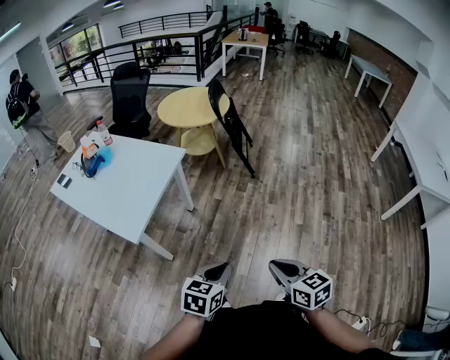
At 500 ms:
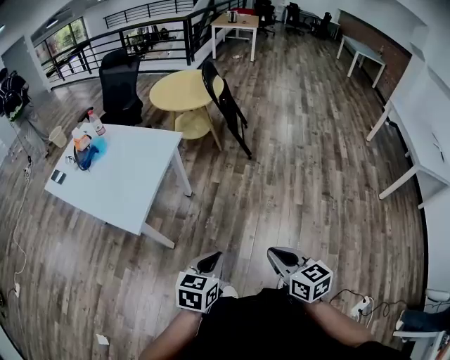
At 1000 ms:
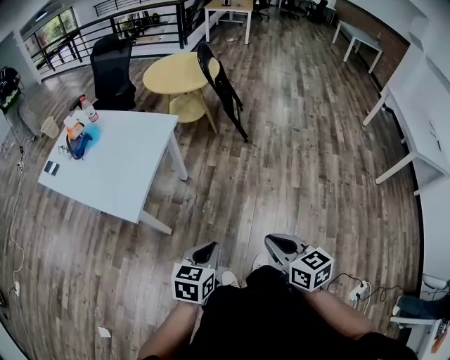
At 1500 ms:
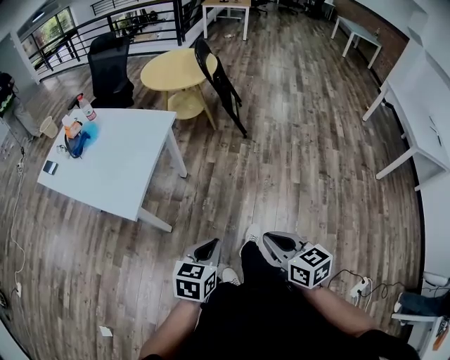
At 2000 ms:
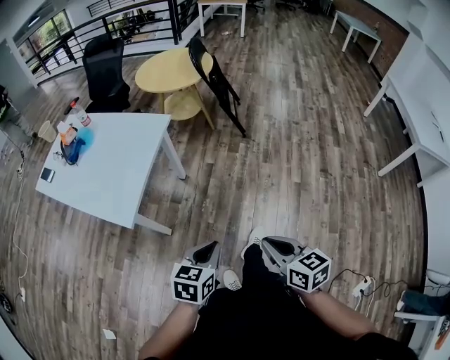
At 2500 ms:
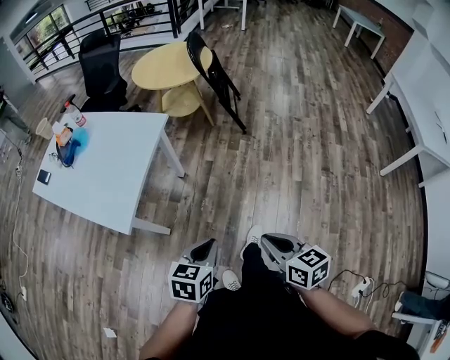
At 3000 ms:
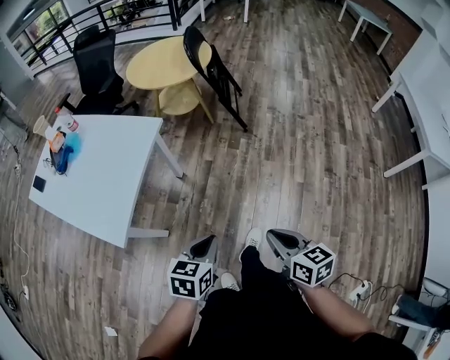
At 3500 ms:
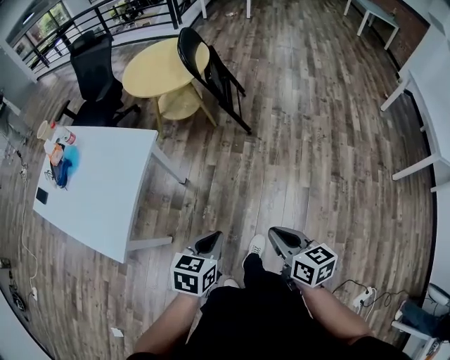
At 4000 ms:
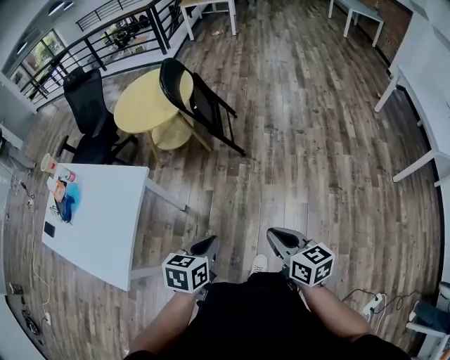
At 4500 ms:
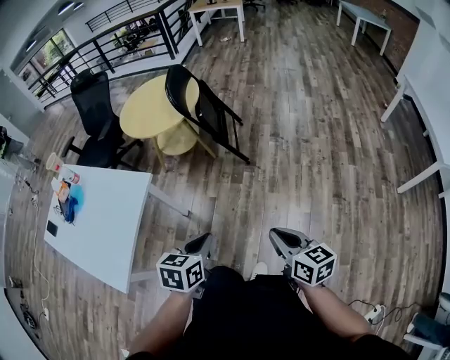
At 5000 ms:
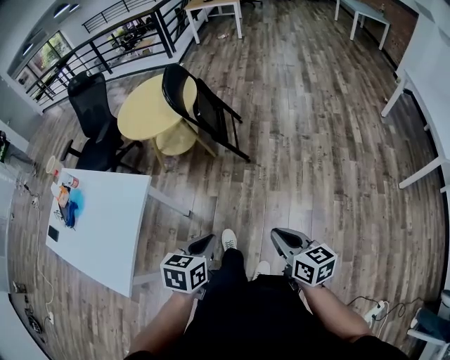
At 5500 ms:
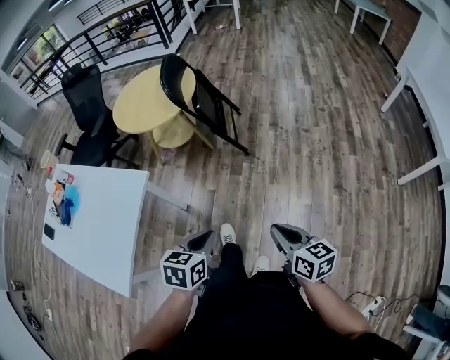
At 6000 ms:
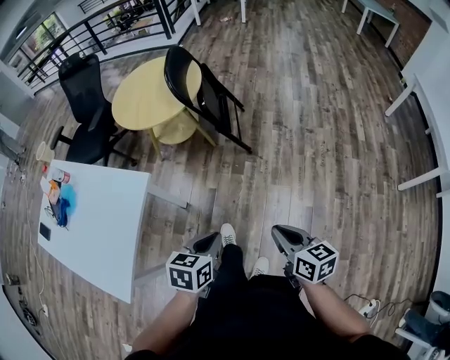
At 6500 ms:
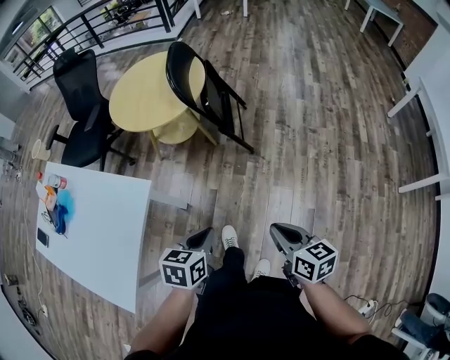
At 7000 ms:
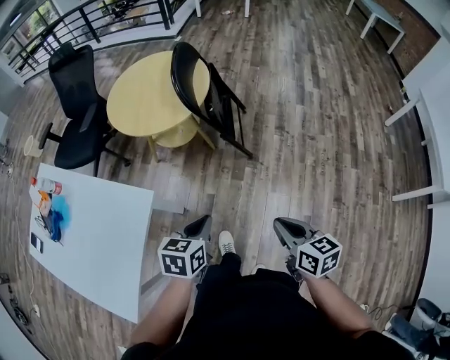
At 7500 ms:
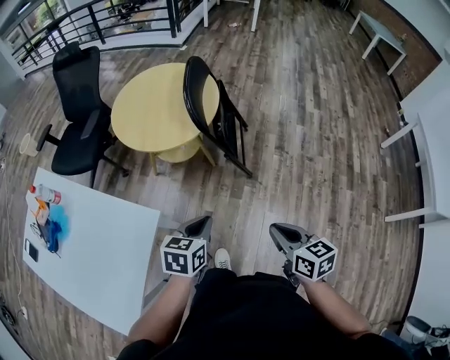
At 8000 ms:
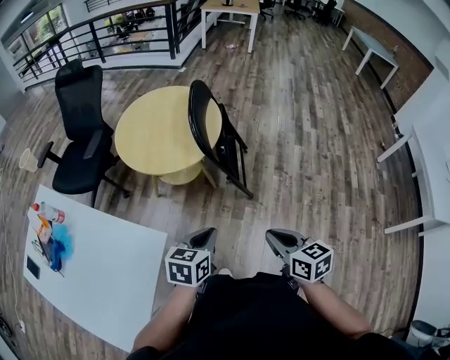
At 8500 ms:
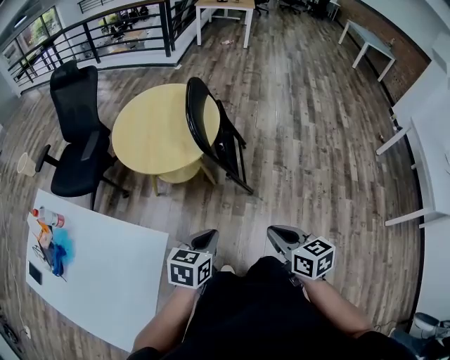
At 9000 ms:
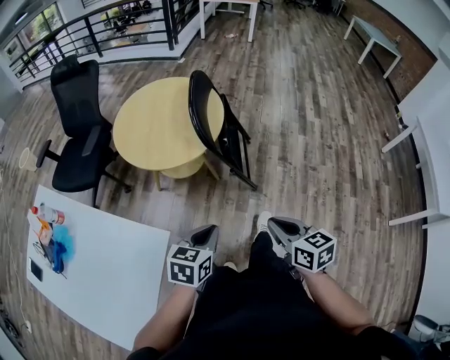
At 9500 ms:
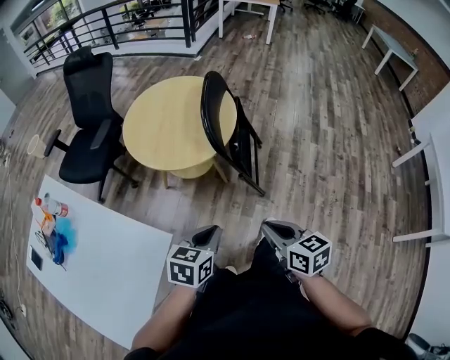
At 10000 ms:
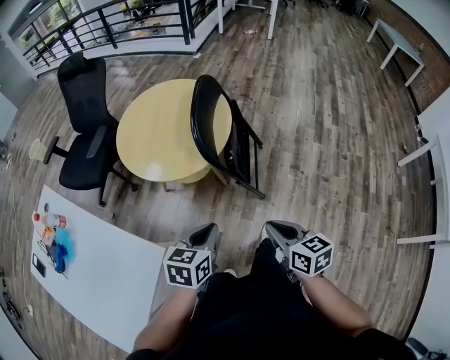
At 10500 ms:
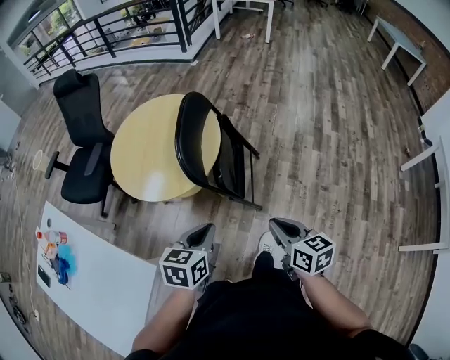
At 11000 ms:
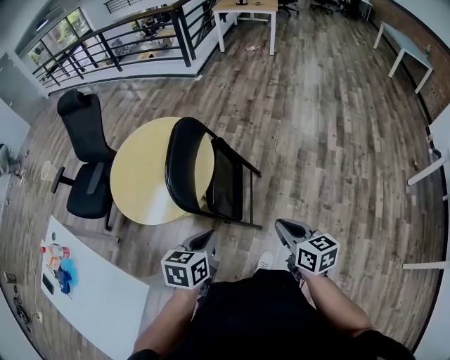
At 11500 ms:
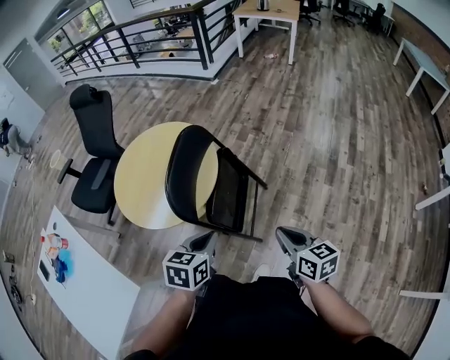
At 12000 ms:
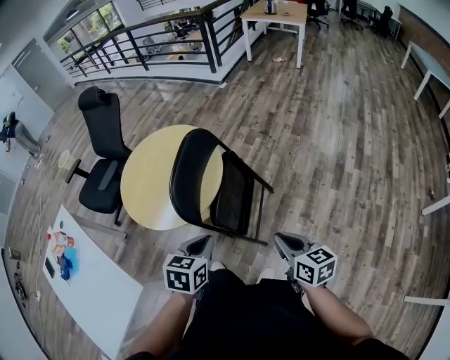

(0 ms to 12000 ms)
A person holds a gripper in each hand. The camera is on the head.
0 ms - 2000 ms: The left gripper heads to the left, covering roughly 5 cm. The right gripper changes place by about 5 cm.
2000 ms - 4000 ms: The two grippers go about 30 cm forward and to the right.
4000 ms - 6000 ms: Both grippers move forward, roughly 10 cm.
6000 ms - 8000 ms: The two grippers go about 25 cm forward and to the left.
8000 ms - 10000 ms: Both grippers move forward, roughly 10 cm.
10000 ms - 12000 ms: The left gripper travels forward and to the right by about 20 cm; the right gripper goes approximately 25 cm to the right and forward.

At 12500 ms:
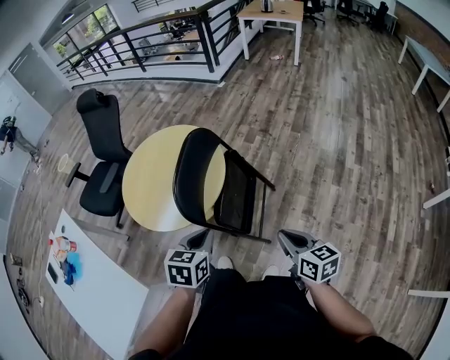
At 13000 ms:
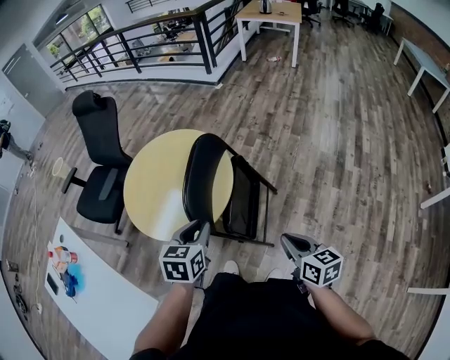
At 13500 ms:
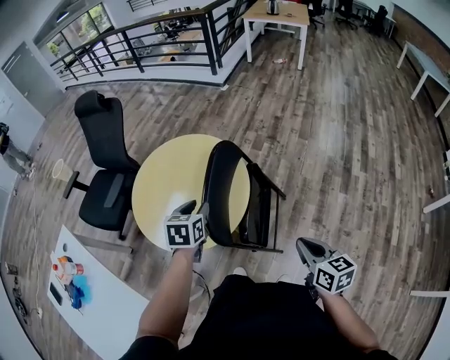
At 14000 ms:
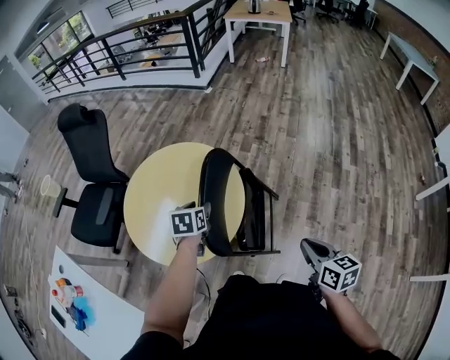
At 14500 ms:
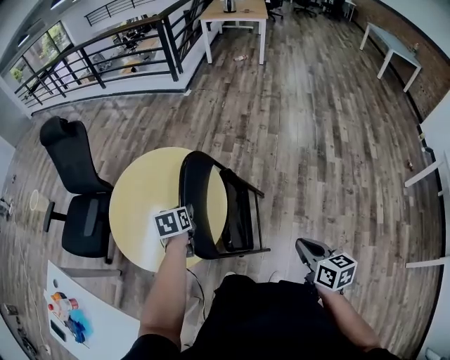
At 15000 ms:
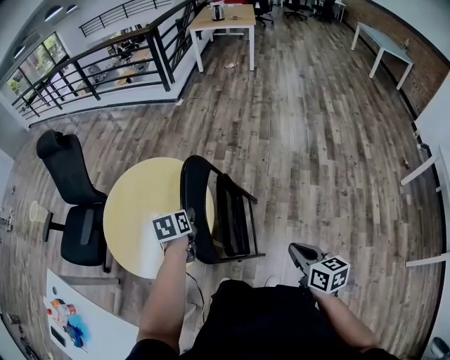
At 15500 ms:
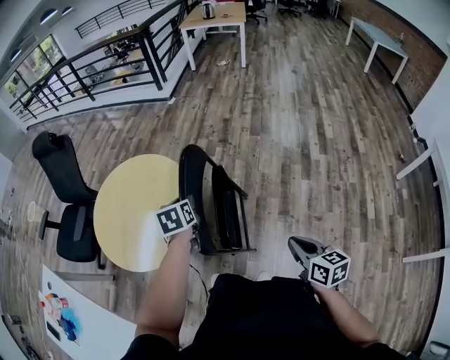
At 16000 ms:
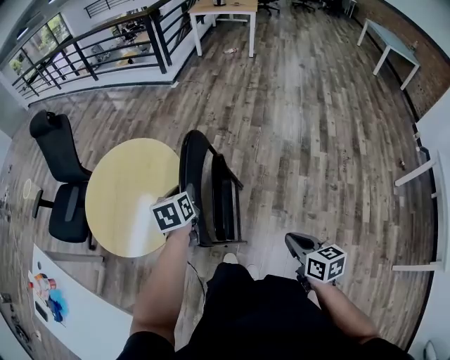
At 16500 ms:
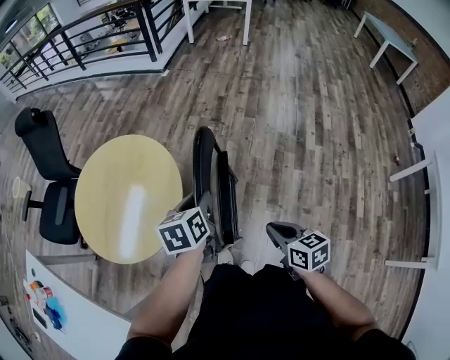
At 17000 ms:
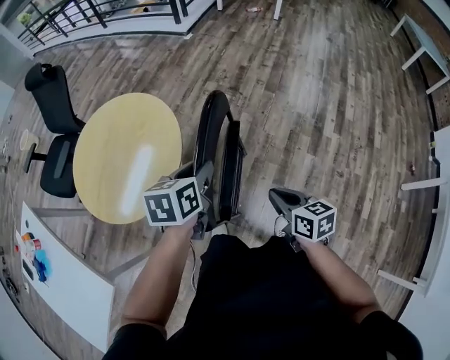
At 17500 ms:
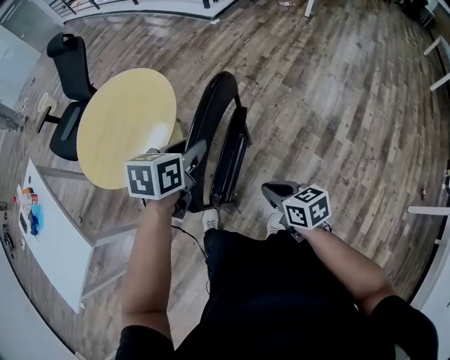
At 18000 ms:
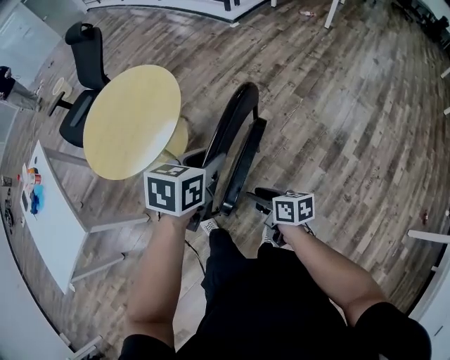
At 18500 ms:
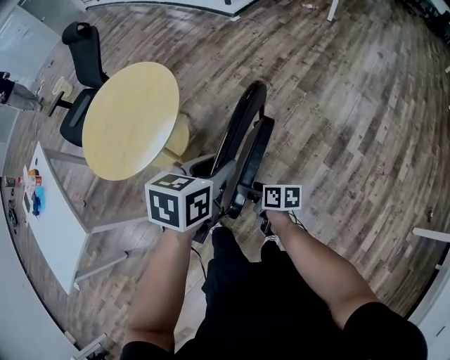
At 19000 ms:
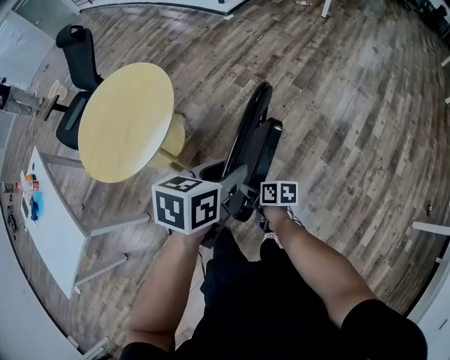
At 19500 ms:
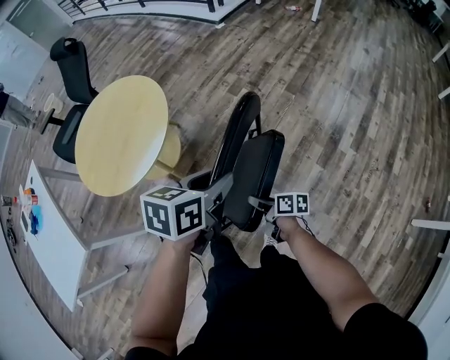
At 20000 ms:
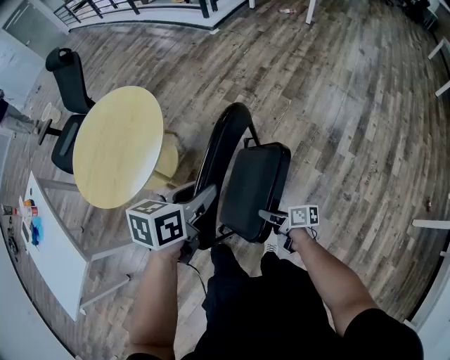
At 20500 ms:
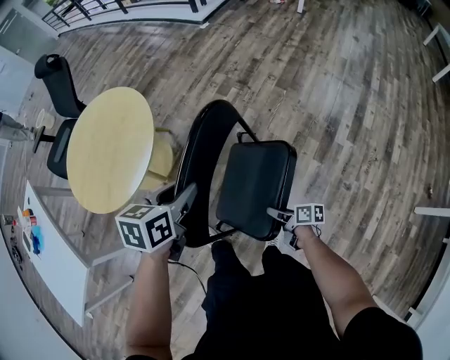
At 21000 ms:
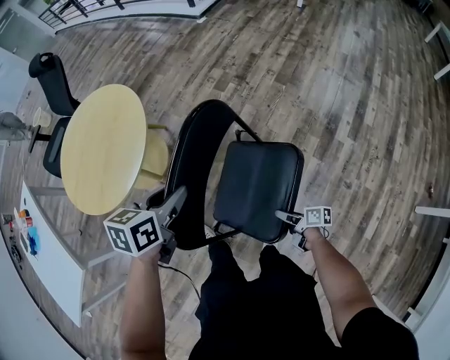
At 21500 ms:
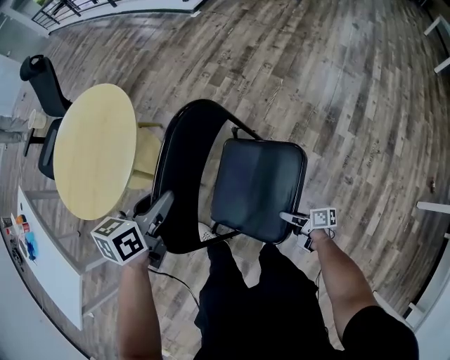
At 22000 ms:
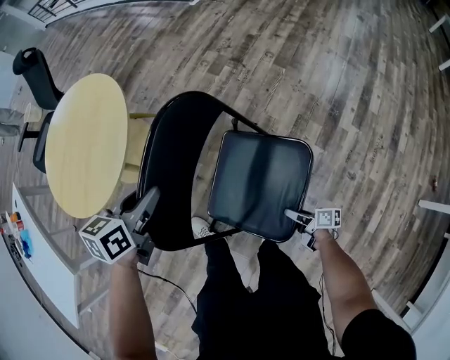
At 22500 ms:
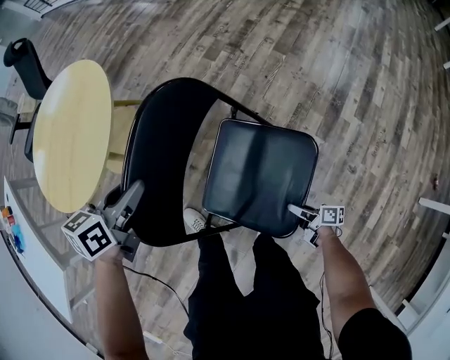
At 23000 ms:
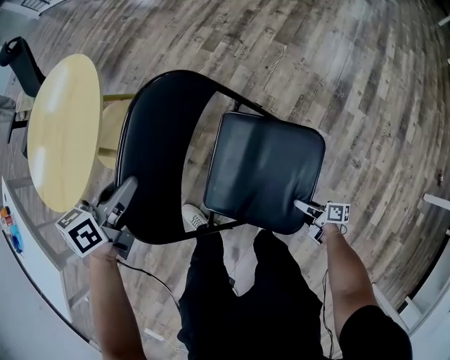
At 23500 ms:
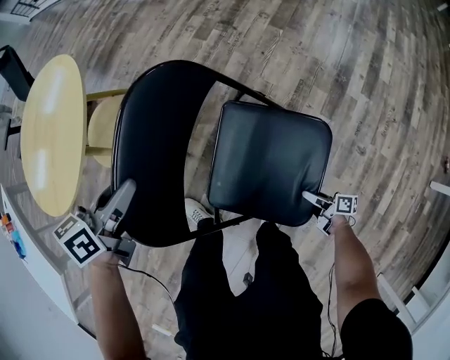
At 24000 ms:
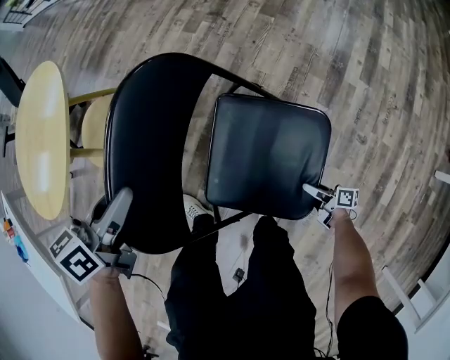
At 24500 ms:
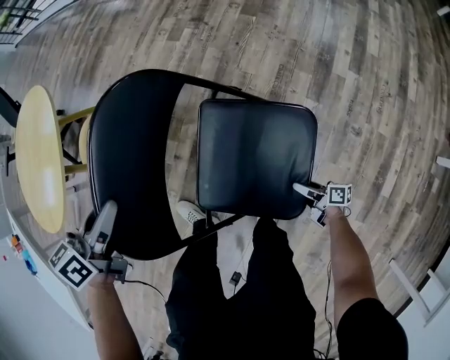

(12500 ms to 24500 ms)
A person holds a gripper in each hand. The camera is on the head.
12500 ms - 14500 ms: The left gripper shifts roughly 30 cm forward and to the left, and opens up. The right gripper travels forward by some 5 cm.
14500 ms - 16500 ms: The right gripper shifts about 10 cm to the right, while the left gripper shifts about 25 cm to the right.
16500 ms - 18500 ms: The right gripper is displaced downward by about 20 cm, changes its angle by roughly 30 degrees, and opens. Meanwhile the left gripper moves to the right and backward, roughly 20 cm.
18500 ms - 20500 ms: The right gripper moves to the right, downward and backward, approximately 15 cm, and closes its fingers; the left gripper ends up roughly 5 cm from where it was.
20500 ms - 22500 ms: The right gripper shifts some 20 cm downward and to the right. Meanwhile the left gripper heads downward and to the left, covering approximately 10 cm.
22500 ms - 24500 ms: The right gripper travels downward and to the right by roughly 10 cm; the left gripper shifts some 5 cm to the right.

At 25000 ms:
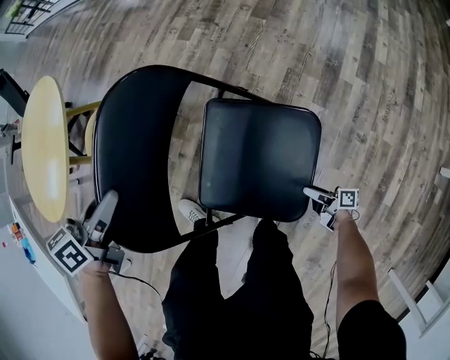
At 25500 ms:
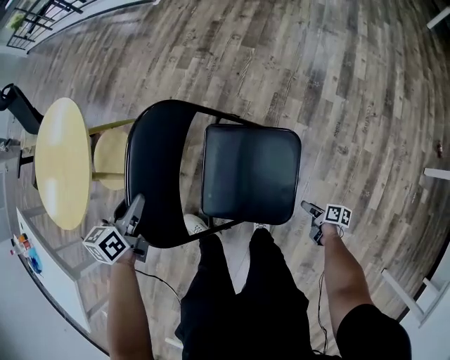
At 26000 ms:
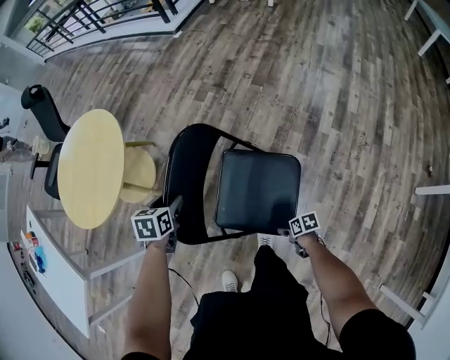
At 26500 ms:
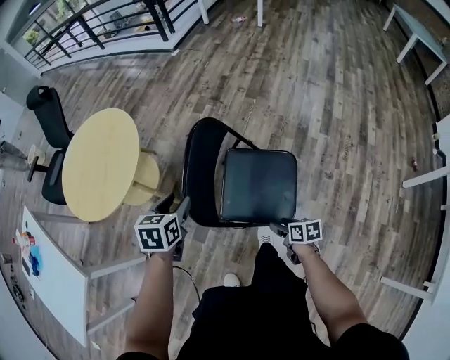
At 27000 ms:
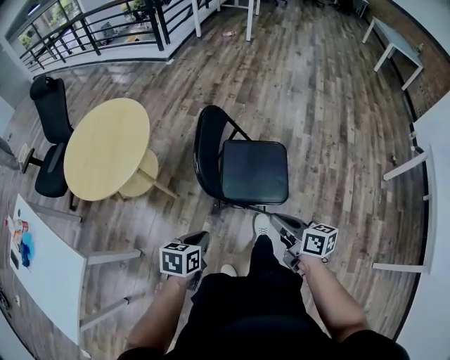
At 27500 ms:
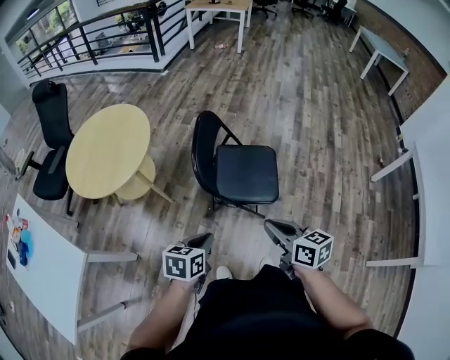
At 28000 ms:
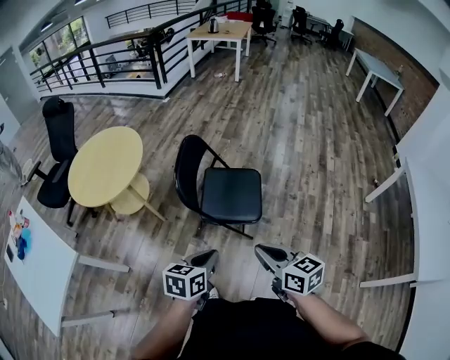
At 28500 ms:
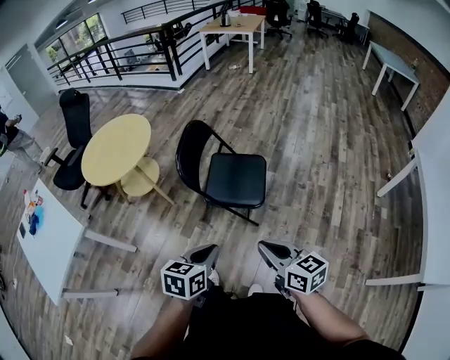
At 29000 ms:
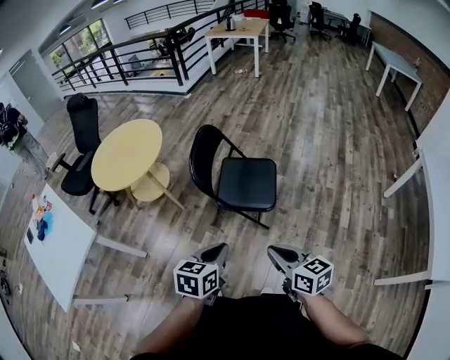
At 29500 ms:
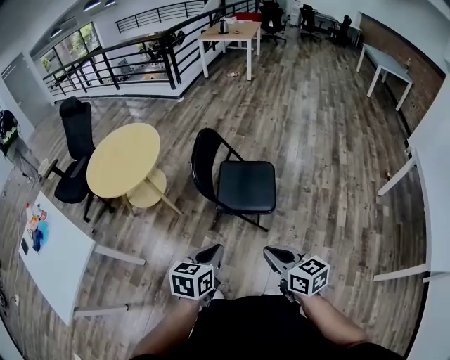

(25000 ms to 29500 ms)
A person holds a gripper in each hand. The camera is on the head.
25000 ms - 27000 ms: The right gripper shifts some 50 cm upward, changes its angle by some 40 degrees, and closes. The left gripper shifts by about 35 cm, rotates roughly 20 degrees, and closes up.
27000 ms - 29500 ms: The right gripper travels backward and upward by about 25 cm, and changes its angle by some 20 degrees. The left gripper heads backward, upward and to the right, covering some 25 cm.
